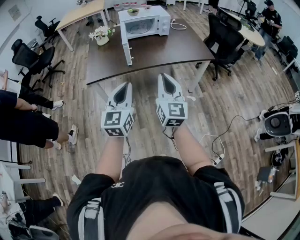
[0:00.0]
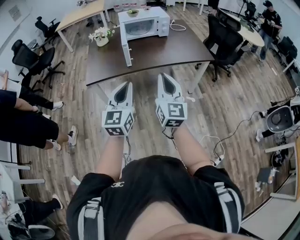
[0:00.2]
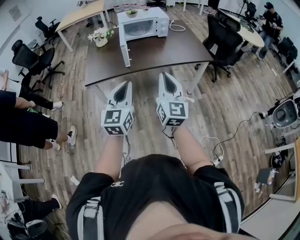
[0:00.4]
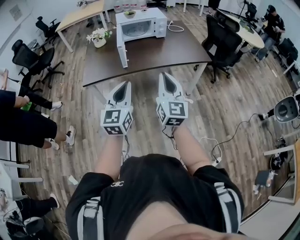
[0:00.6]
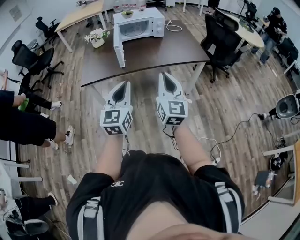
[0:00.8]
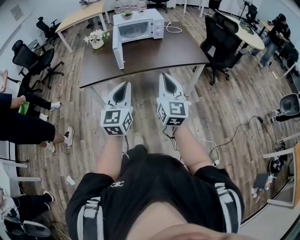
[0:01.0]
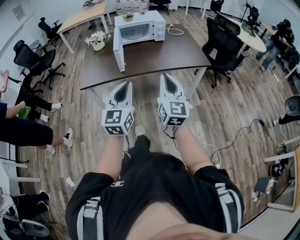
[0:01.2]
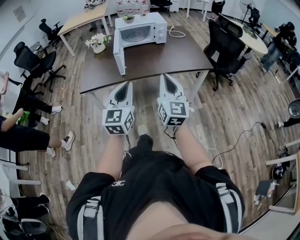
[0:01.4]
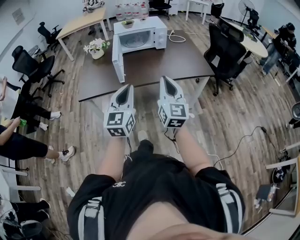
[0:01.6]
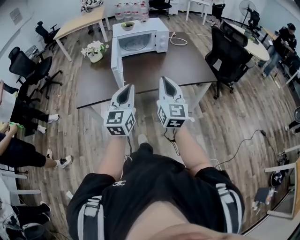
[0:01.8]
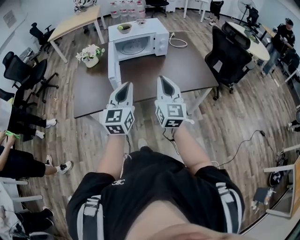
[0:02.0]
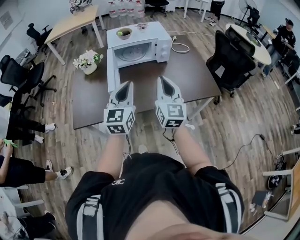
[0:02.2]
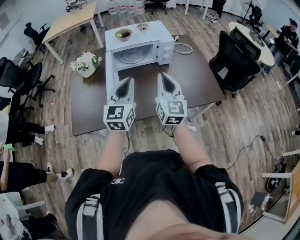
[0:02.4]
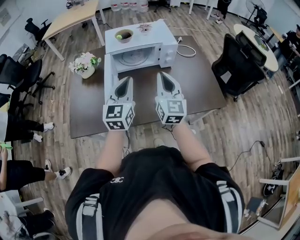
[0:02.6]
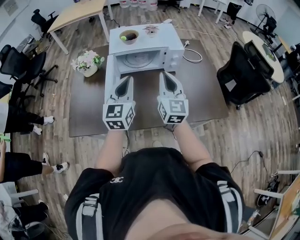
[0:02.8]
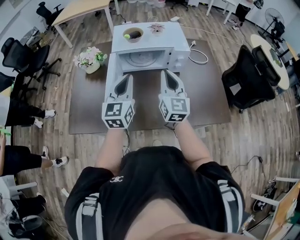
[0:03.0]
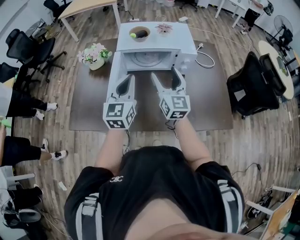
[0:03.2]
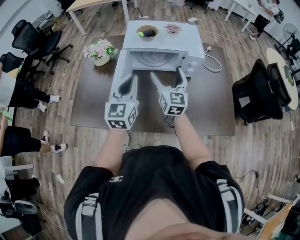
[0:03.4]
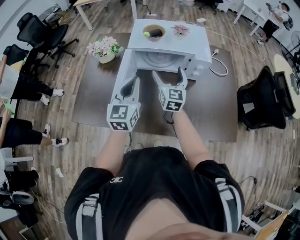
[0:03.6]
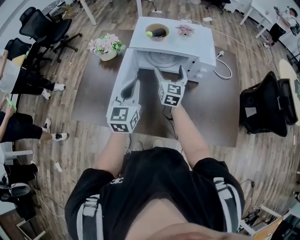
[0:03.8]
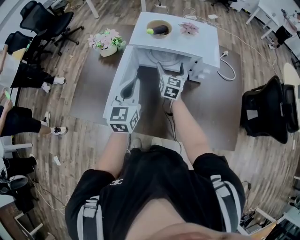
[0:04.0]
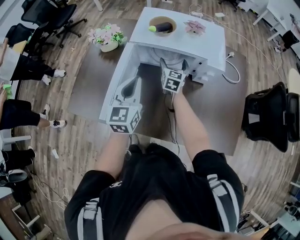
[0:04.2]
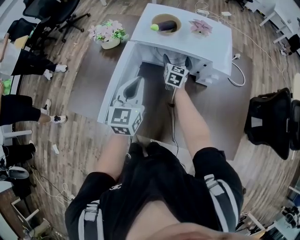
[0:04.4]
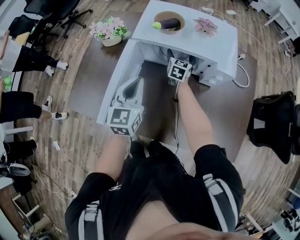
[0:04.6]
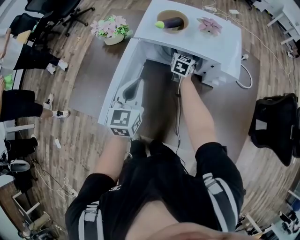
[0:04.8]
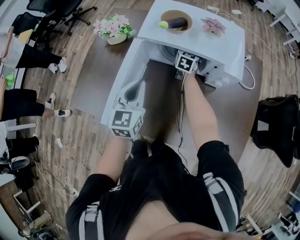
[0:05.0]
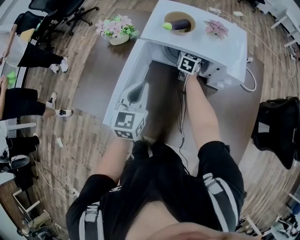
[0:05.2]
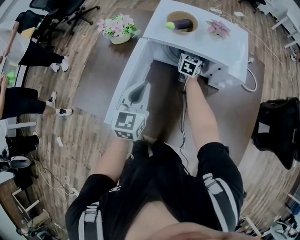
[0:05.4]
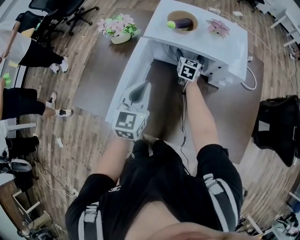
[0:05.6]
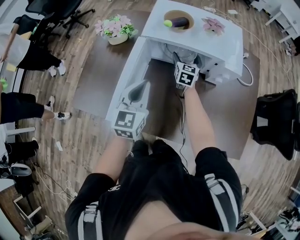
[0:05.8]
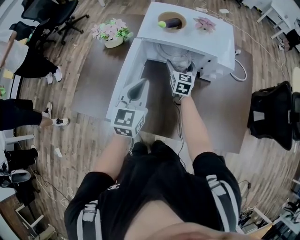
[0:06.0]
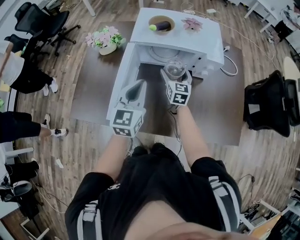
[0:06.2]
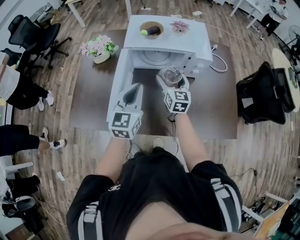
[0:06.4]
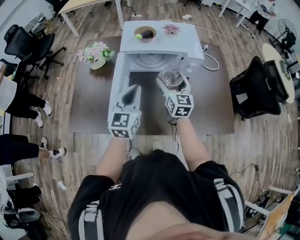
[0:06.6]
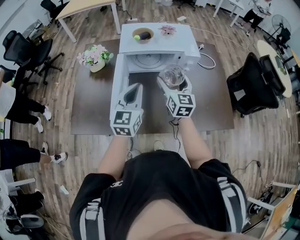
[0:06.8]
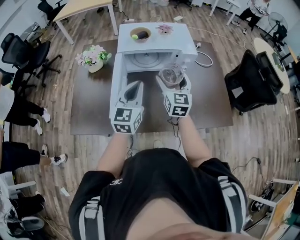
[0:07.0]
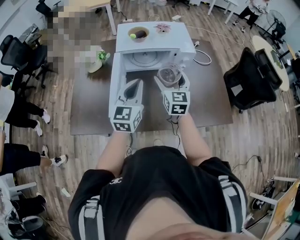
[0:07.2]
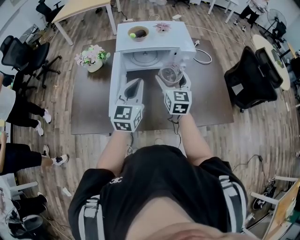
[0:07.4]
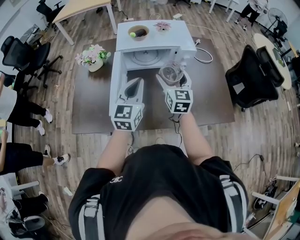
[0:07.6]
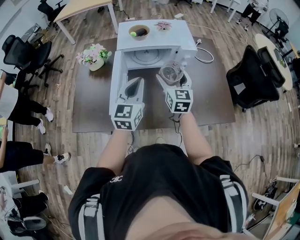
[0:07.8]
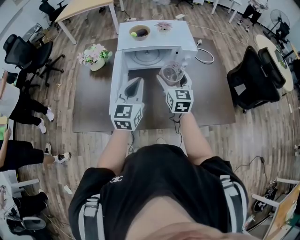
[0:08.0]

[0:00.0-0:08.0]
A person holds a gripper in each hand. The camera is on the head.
0:00.0 to 0:01.6: Both grippers move forward and to the right, roughly 15 cm.
0:01.6 to 0:03.2: Both grippers are carried forward, approximately 50 cm. The right gripper opens its fingers.
0:03.2 to 0:04.8: The right gripper moves forward and downward, approximately 40 cm, and changes its angle by approximately 30 degrees; the left gripper moves downward and forward, roughly 15 cm.
0:04.8 to 0:06.4: The right gripper is displaced backward and upward by some 25 cm; the left gripper moves backward and upward, some 10 cm.
0:06.4 to 0:08.0: The right gripper shifts some 10 cm backward and upward. Meanwhile the left gripper changes place by approximately 5 cm.

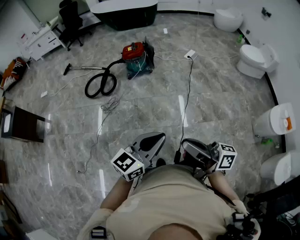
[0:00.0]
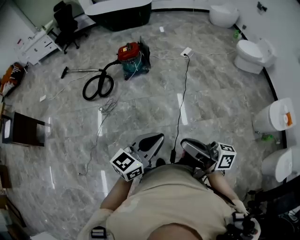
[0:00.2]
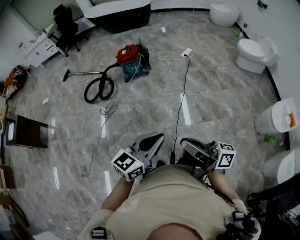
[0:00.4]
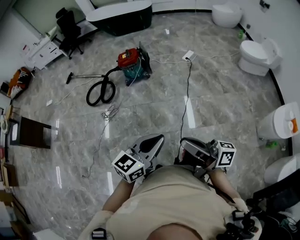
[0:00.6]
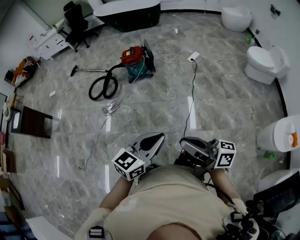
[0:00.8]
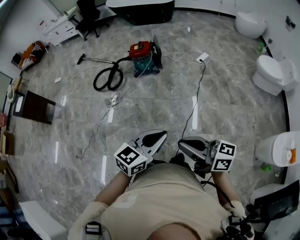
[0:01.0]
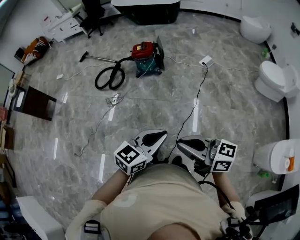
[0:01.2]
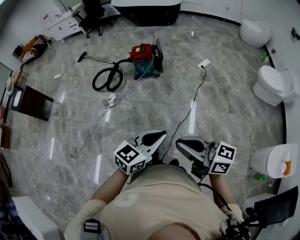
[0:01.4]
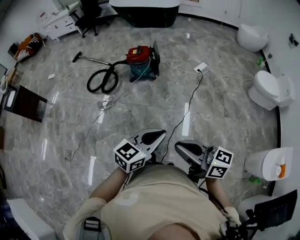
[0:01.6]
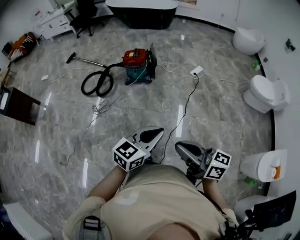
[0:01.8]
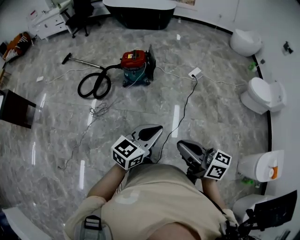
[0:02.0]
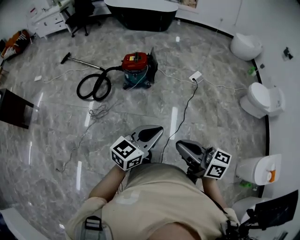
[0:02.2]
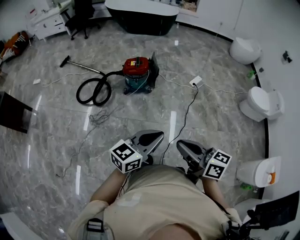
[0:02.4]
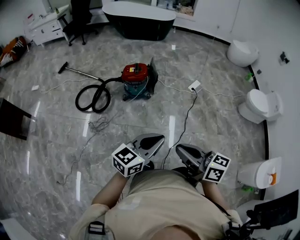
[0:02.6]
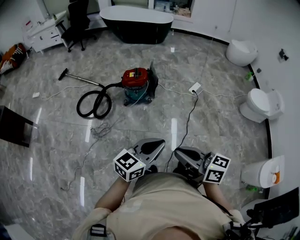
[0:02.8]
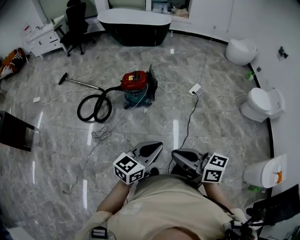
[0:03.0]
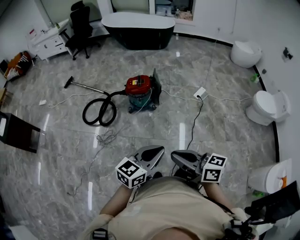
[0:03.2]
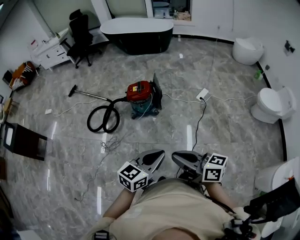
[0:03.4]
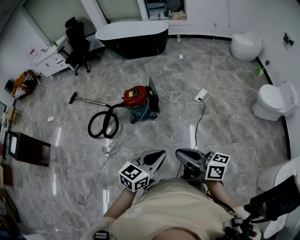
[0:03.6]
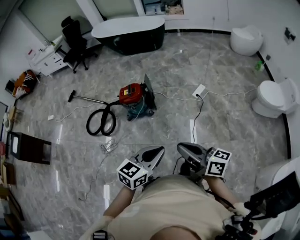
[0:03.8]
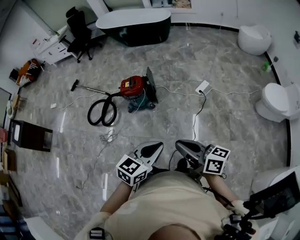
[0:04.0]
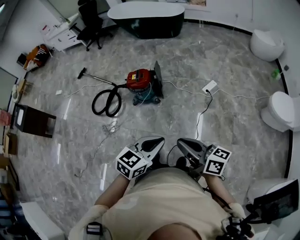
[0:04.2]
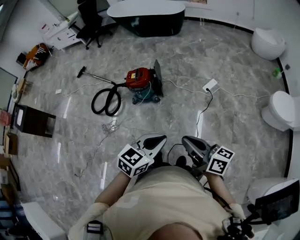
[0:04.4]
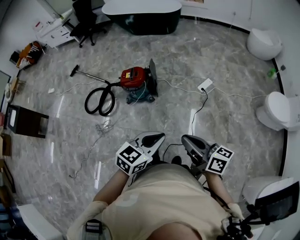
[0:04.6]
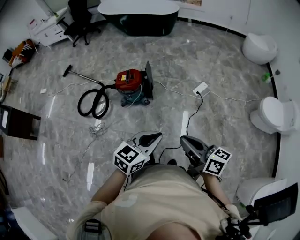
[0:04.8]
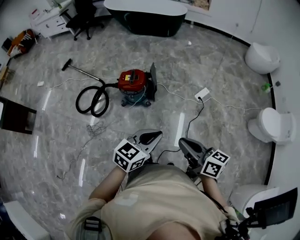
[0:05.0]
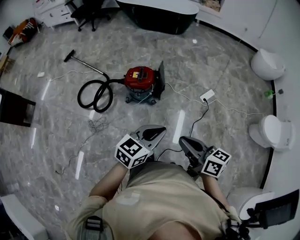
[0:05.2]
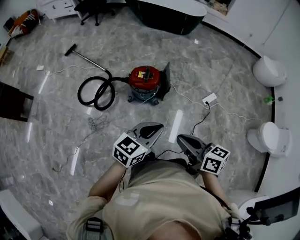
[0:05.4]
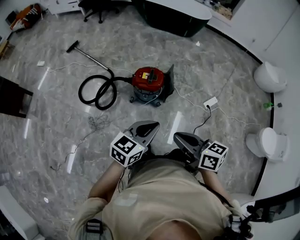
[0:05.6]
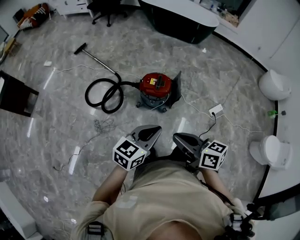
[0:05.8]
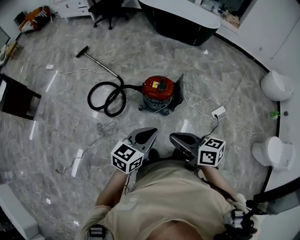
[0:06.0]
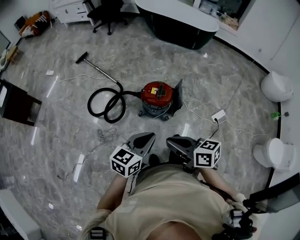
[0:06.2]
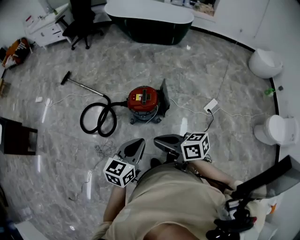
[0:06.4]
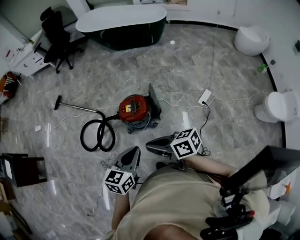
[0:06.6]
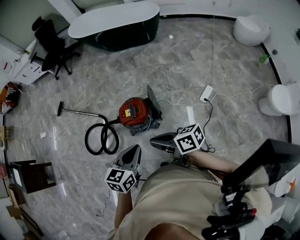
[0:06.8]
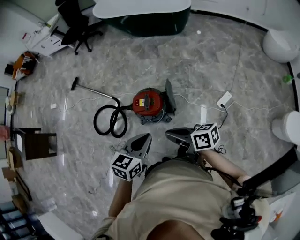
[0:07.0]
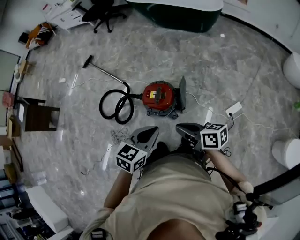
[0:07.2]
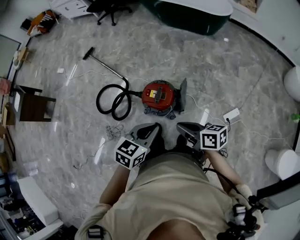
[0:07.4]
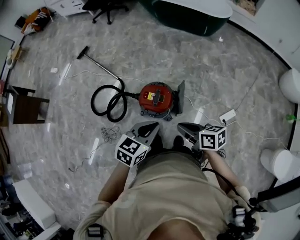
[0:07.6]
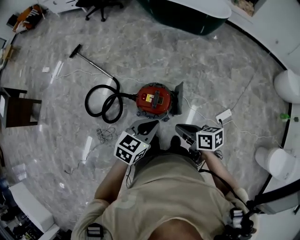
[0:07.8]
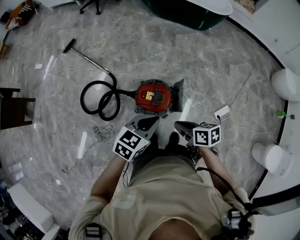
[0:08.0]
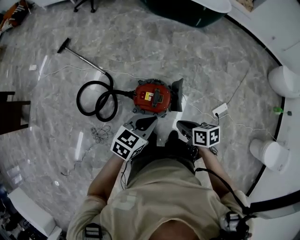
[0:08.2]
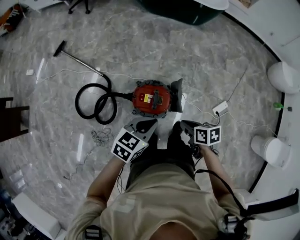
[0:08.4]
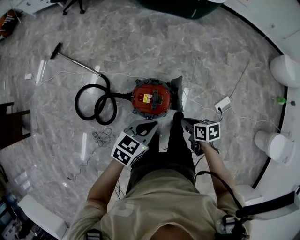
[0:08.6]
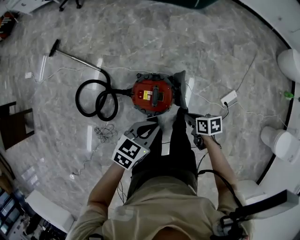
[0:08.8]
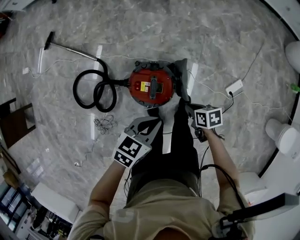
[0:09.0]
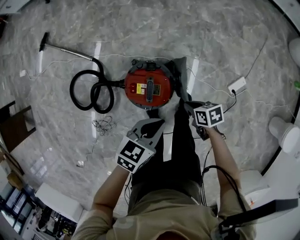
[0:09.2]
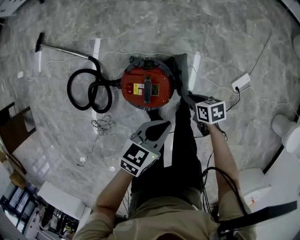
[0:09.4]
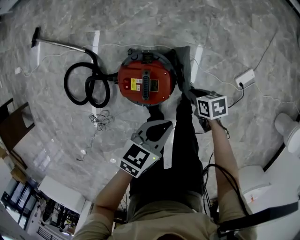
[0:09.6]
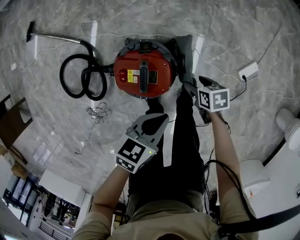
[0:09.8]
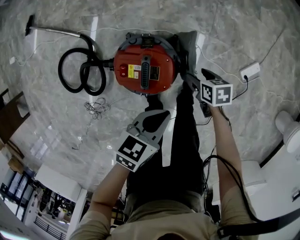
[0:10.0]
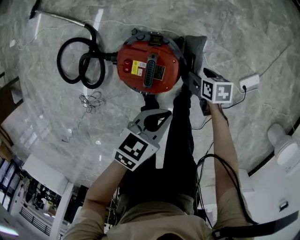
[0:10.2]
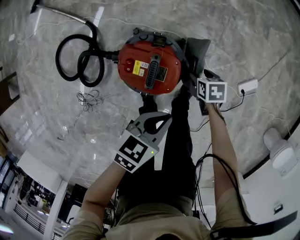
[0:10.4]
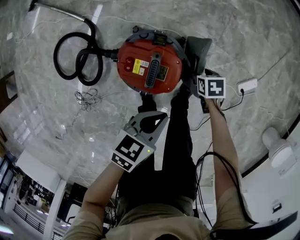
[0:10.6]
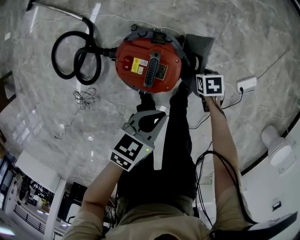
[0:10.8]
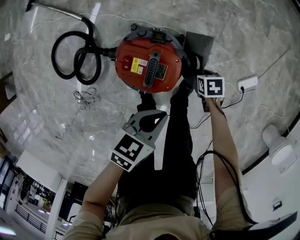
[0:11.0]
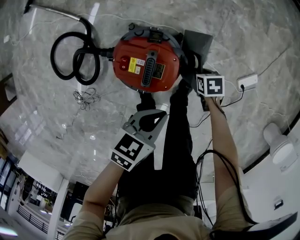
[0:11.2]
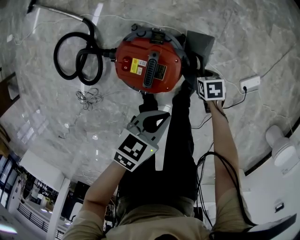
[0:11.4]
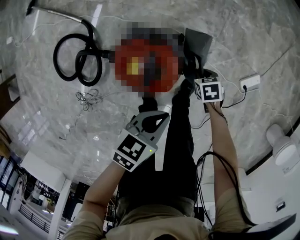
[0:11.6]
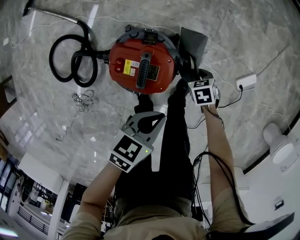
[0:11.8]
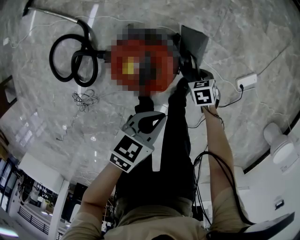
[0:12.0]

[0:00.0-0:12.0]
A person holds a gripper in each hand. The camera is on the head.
0:00.0 to 0:01.6: Both grippers travel together to the right and forward, roughly 25 cm. The right gripper changes its angle by about 30 degrees.
0:01.6 to 0:03.0: The two grippers go approximately 25 cm forward and to the left.
0:03.0 to 0:04.4: The two grippers go approximately 30 cm to the right and forward. The left gripper turns by approximately 20 degrees.
0:04.4 to 0:06.0: The pair of grippers is taken to the left and forward, roughly 40 cm. The right gripper turns by about 30 degrees. The left gripper turns by some 20 degrees.
0:06.0 to 0:07.6: The right gripper shifts roughly 30 cm forward, to the right and downward. The left gripper shifts some 30 cm forward and to the right.
0:07.6 to 0:09.0: The right gripper shifts approximately 30 cm downward, and swivels roughly 30 degrees, while the left gripper goes some 15 cm downward, and swivels approximately 20 degrees.
0:09.0 to 0:10.4: The two grippers go some 20 cm downward. The right gripper opens.
0:10.4 to 0:12.0: The right gripper changes place by roughly 5 cm, and closes up.

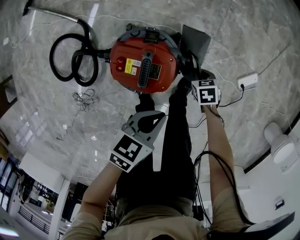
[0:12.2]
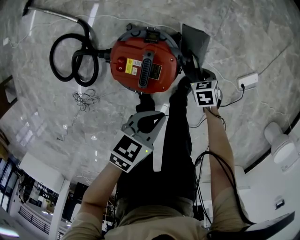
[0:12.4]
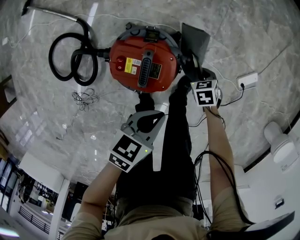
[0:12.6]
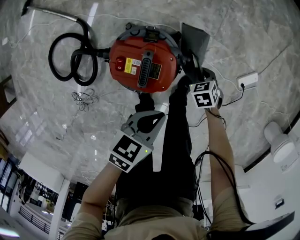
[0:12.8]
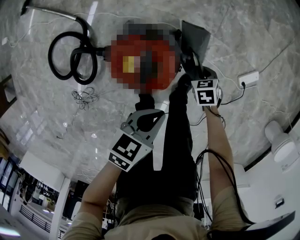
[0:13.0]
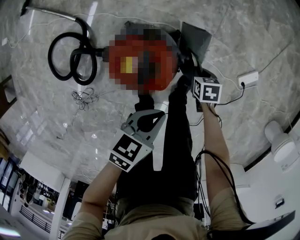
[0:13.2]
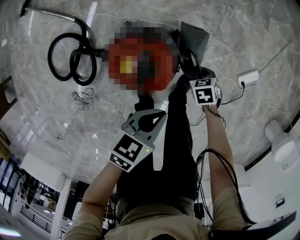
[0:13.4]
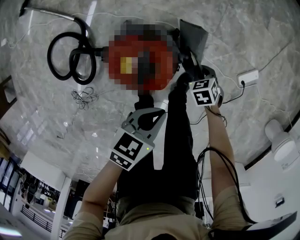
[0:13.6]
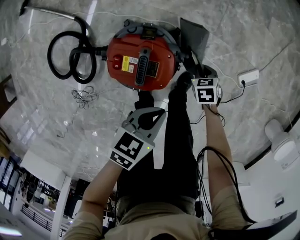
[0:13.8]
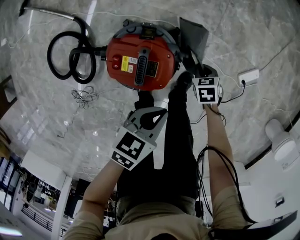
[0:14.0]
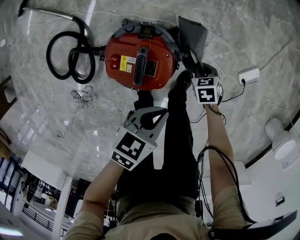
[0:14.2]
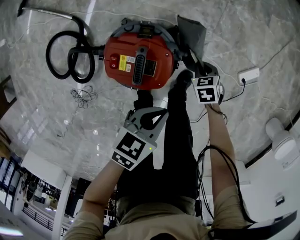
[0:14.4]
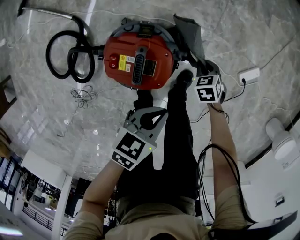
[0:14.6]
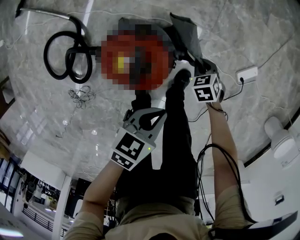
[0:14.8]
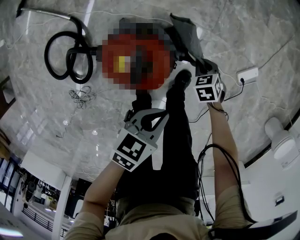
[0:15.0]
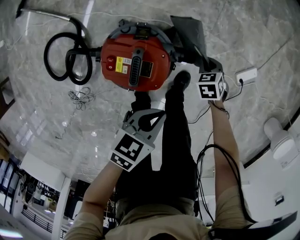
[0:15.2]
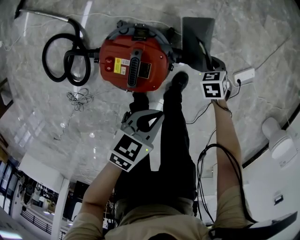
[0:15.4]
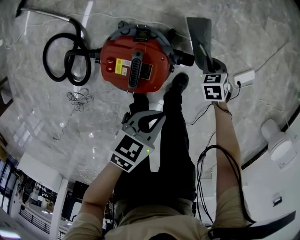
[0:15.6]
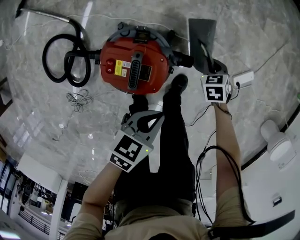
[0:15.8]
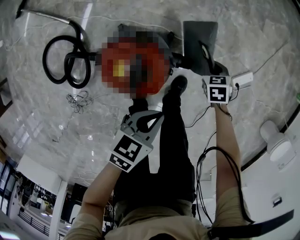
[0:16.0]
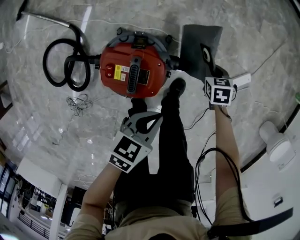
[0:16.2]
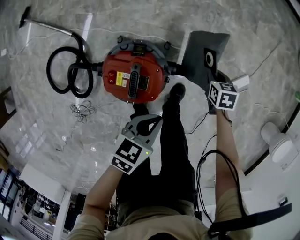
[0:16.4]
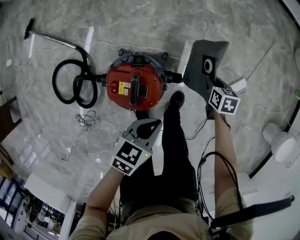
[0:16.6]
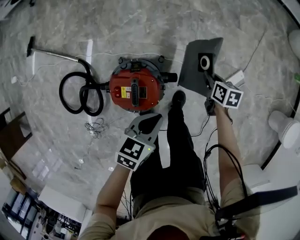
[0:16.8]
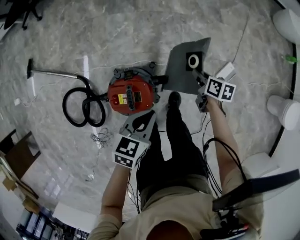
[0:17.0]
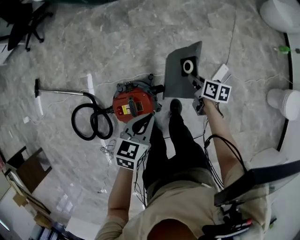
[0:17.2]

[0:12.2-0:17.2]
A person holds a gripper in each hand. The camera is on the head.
0:12.2 to 0:13.8: The grippers move only a little.
0:13.8 to 0:15.6: The right gripper heads forward, covering about 5 cm.
0:15.6 to 0:17.2: The right gripper moves upward, about 25 cm, and rolls clockwise, seen from behind, by about 70 degrees; the left gripper goes approximately 25 cm upward and forward, and swivels approximately 20 degrees.
